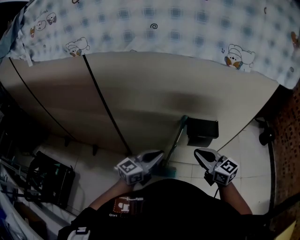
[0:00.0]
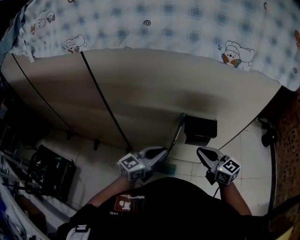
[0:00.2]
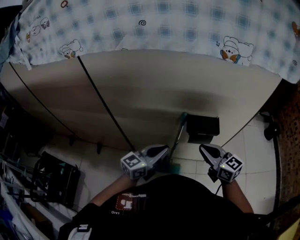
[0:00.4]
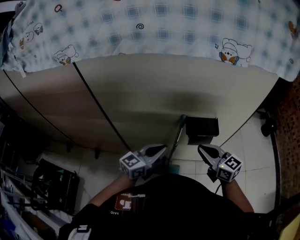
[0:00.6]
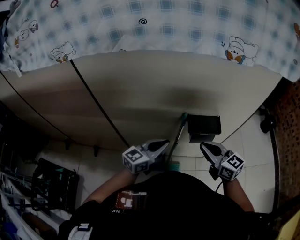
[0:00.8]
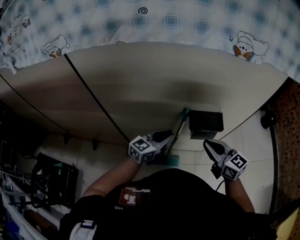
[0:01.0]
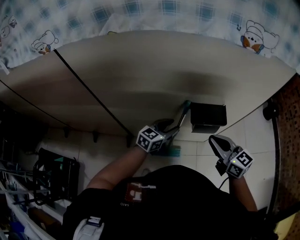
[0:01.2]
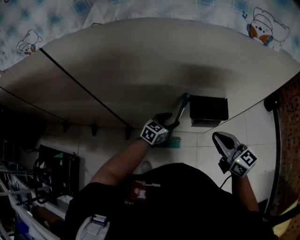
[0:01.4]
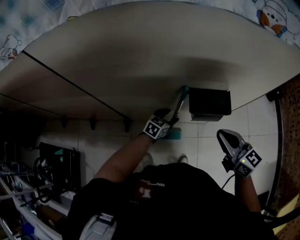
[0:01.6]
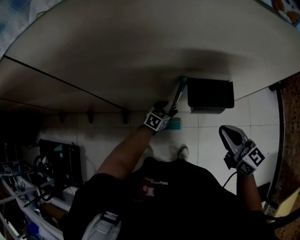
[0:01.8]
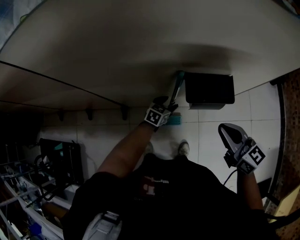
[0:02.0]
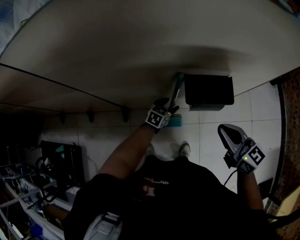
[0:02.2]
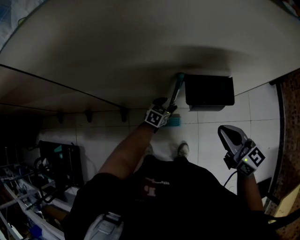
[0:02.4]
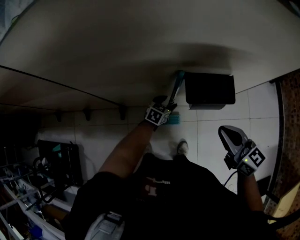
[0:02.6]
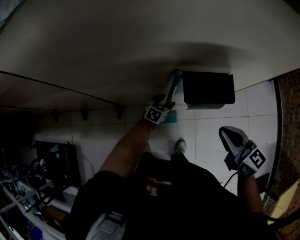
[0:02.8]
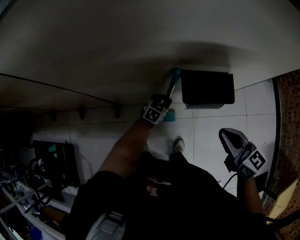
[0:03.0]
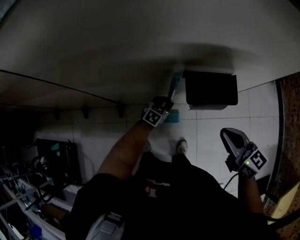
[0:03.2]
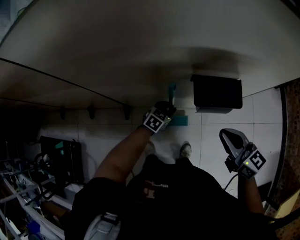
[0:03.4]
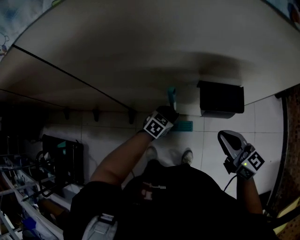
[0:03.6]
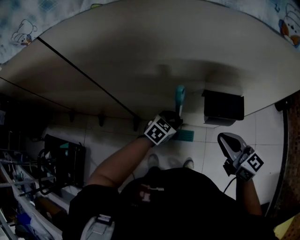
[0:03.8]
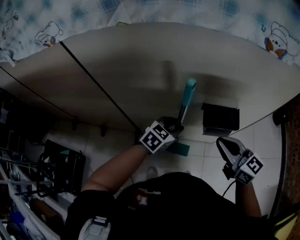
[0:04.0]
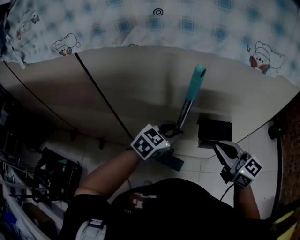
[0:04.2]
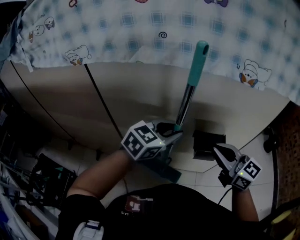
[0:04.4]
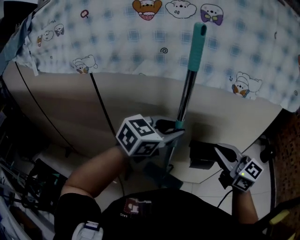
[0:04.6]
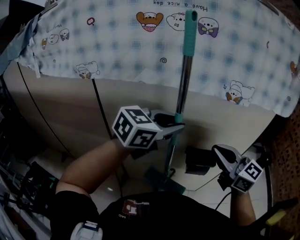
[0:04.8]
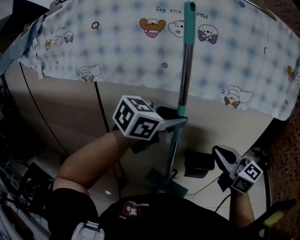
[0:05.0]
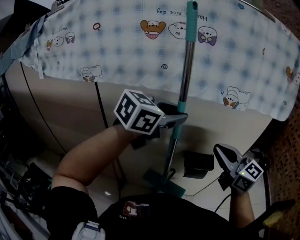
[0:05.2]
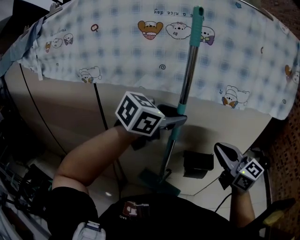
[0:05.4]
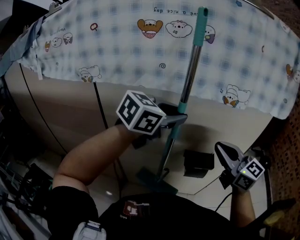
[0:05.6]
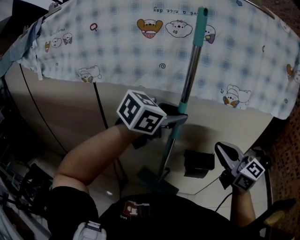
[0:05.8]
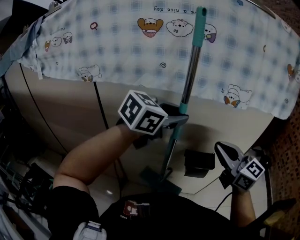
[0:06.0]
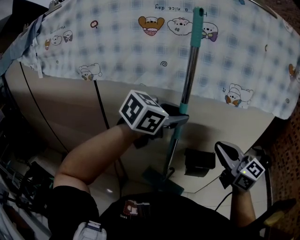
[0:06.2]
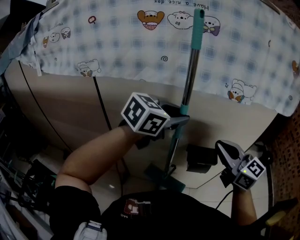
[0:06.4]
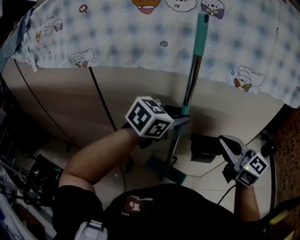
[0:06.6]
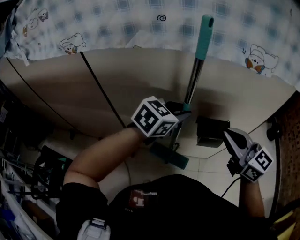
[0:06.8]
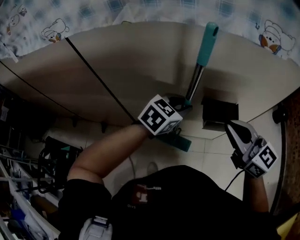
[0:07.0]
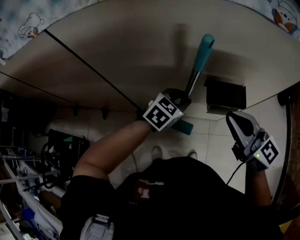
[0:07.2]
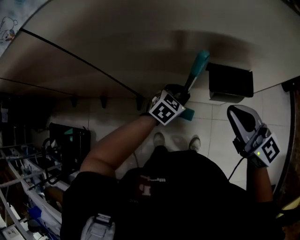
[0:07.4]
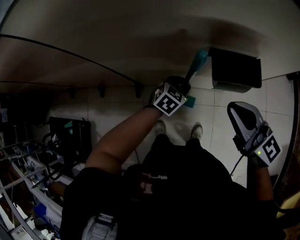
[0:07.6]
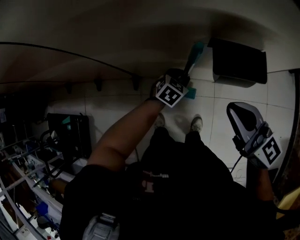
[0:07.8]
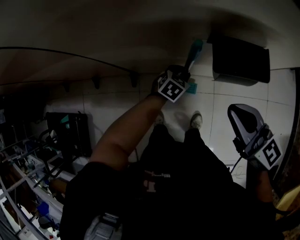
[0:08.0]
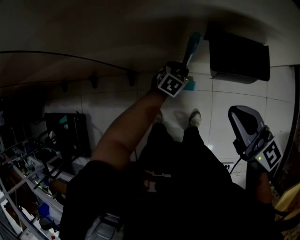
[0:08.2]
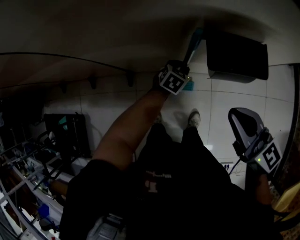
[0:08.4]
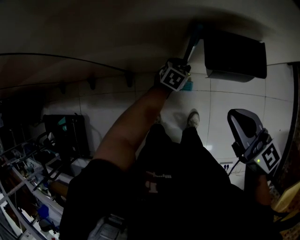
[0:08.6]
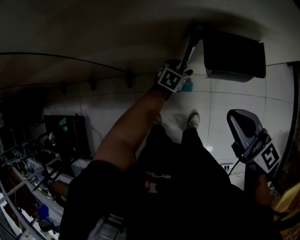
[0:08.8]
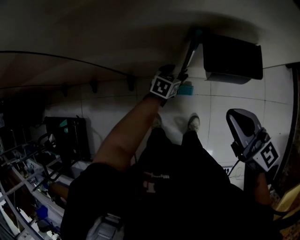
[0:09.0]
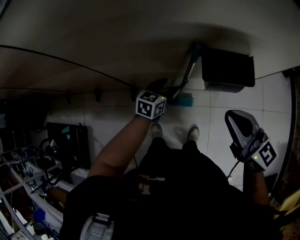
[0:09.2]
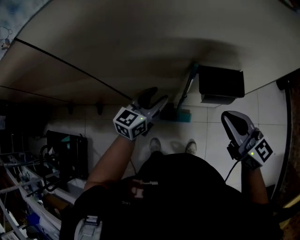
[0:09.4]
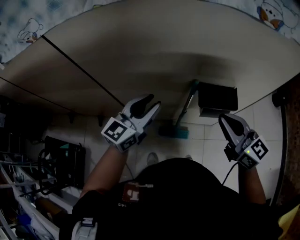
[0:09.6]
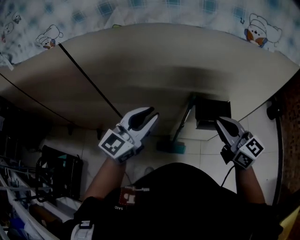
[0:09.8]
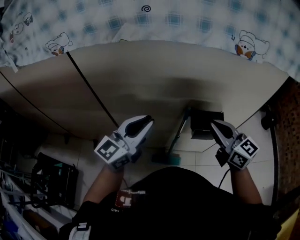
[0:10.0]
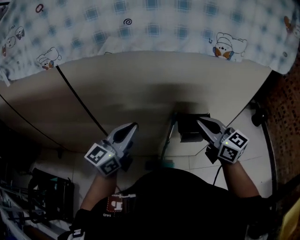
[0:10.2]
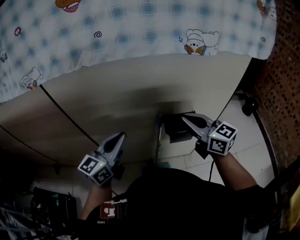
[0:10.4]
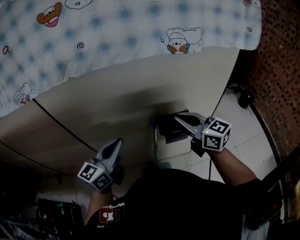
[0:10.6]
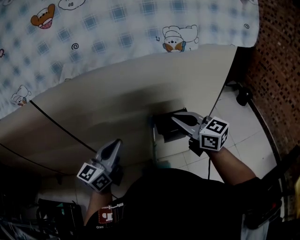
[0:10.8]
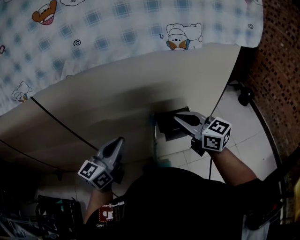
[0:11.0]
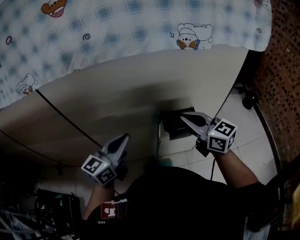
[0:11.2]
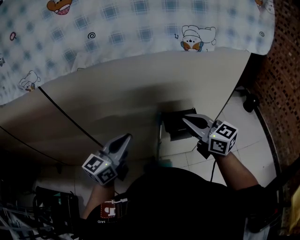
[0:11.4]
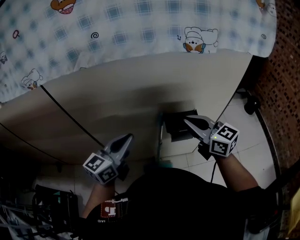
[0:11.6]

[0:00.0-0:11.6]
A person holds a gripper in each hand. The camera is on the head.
0:00.0 to 0:01.4: The left gripper travels downward and forward by approximately 25 cm, rotates some 30 degrees, and opens its fingers; the right gripper travels to the right by roughly 5 cm.
0:01.4 to 0:02.8: The right gripper is displaced downward by approximately 5 cm, while the left gripper travels downward by about 15 cm.
0:02.8 to 0:04.4: The left gripper heads upward, covering some 50 cm, turns by about 30 degrees, and closes its fingers, while the right gripper moves upward and to the left, some 20 cm, and swivels about 30 degrees.
0:04.4 to 0:05.8: The right gripper travels upward by approximately 10 cm, while the left gripper moves upward, about 15 cm.
0:05.8 to 0:07.2: The right gripper is displaced downward by some 15 cm, while the left gripper moves downward, roughly 35 cm, and swivels about 20 degrees.
0:07.2 to 0:08.8: The right gripper moves downward, approximately 15 cm. Meanwhile the left gripper travels downward by approximately 30 cm, and opens up.
0:08.8 to 0:10.2: The right gripper travels upward by about 20 cm; the left gripper shifts about 50 cm upward, tips its fingers upward by approximately 50 degrees, and closes up.
0:10.2 to 0:11.6: There are only small adjustments of the grippers.

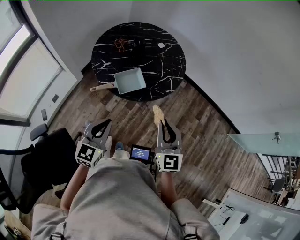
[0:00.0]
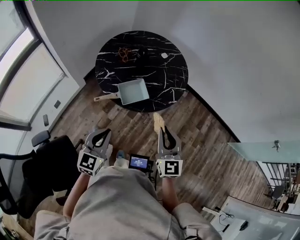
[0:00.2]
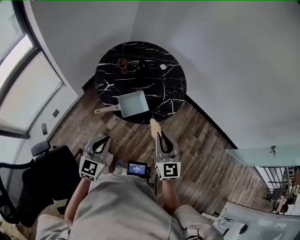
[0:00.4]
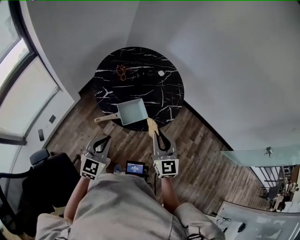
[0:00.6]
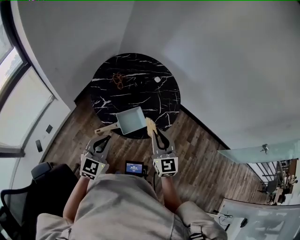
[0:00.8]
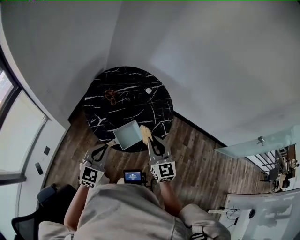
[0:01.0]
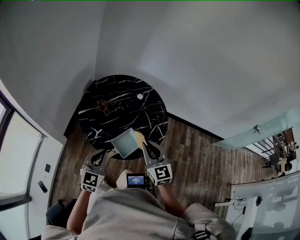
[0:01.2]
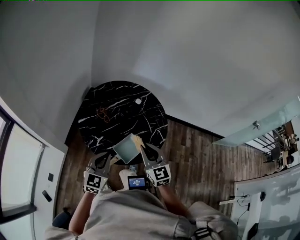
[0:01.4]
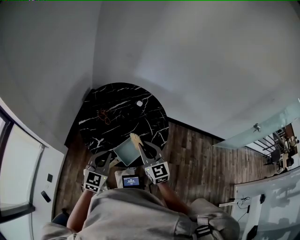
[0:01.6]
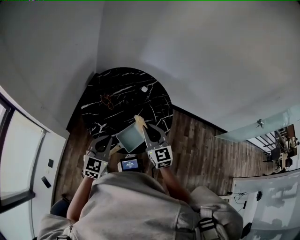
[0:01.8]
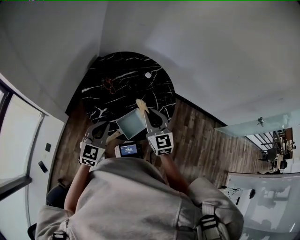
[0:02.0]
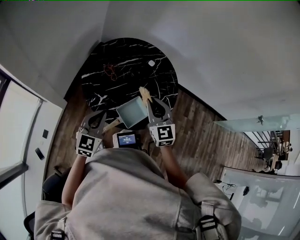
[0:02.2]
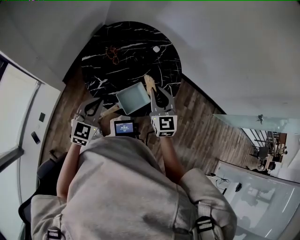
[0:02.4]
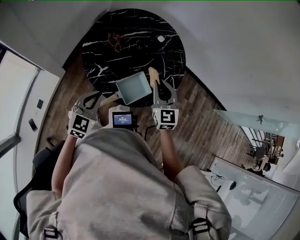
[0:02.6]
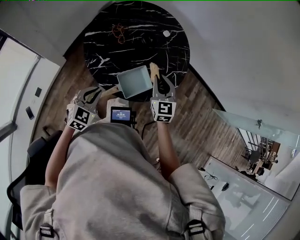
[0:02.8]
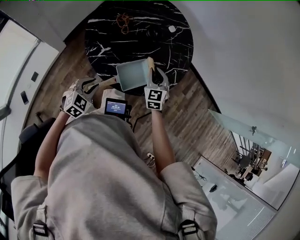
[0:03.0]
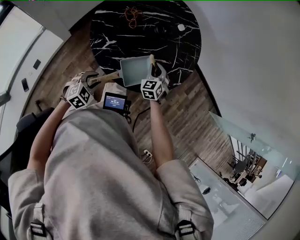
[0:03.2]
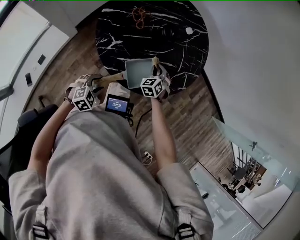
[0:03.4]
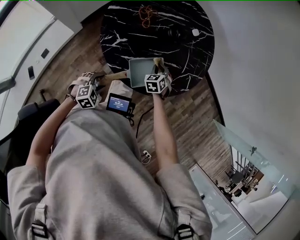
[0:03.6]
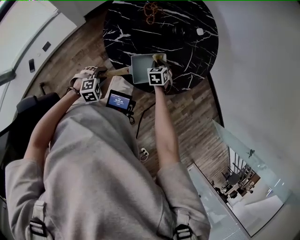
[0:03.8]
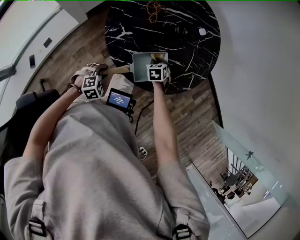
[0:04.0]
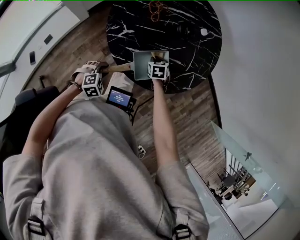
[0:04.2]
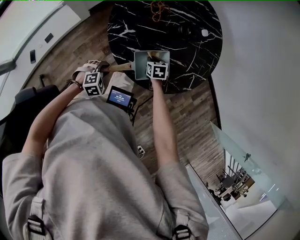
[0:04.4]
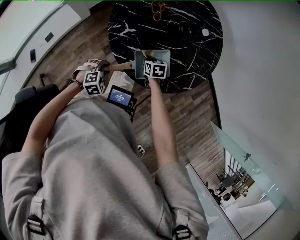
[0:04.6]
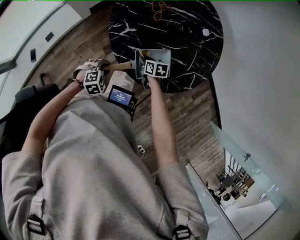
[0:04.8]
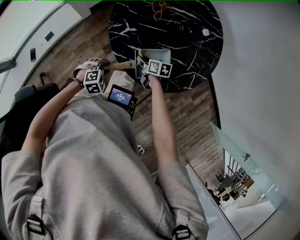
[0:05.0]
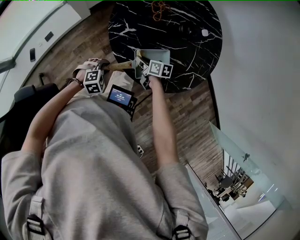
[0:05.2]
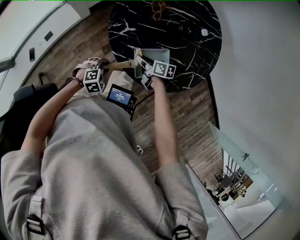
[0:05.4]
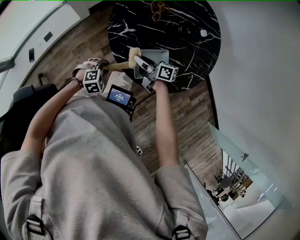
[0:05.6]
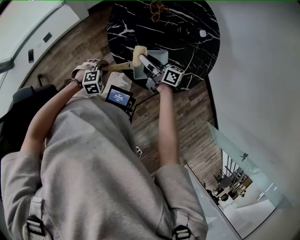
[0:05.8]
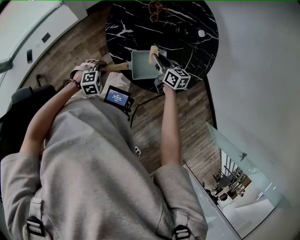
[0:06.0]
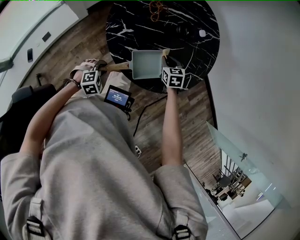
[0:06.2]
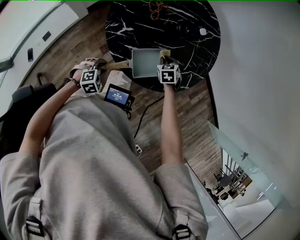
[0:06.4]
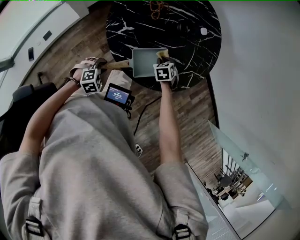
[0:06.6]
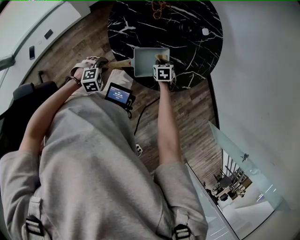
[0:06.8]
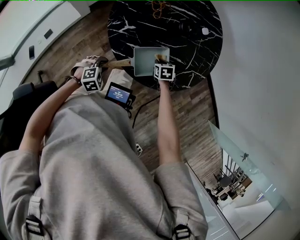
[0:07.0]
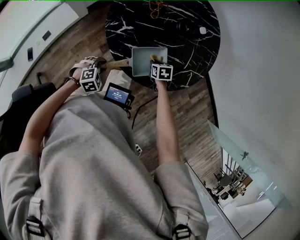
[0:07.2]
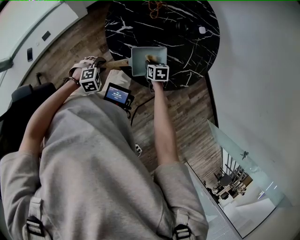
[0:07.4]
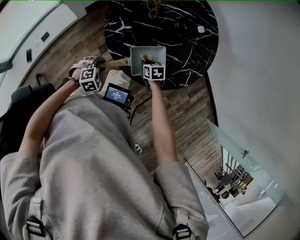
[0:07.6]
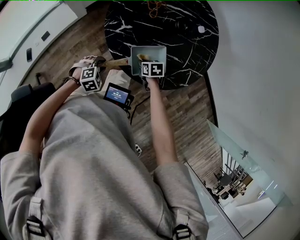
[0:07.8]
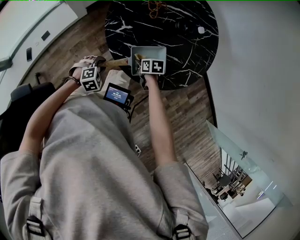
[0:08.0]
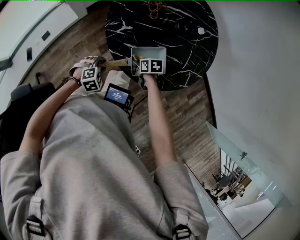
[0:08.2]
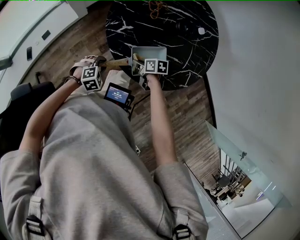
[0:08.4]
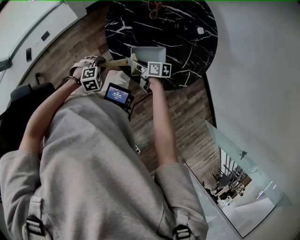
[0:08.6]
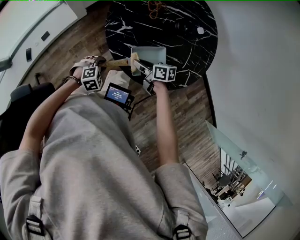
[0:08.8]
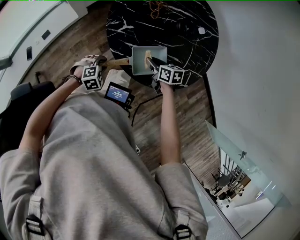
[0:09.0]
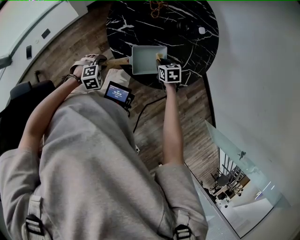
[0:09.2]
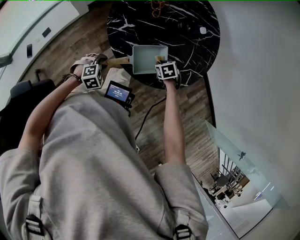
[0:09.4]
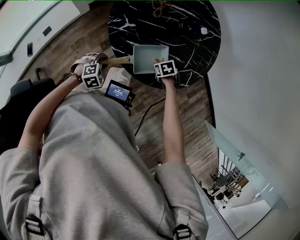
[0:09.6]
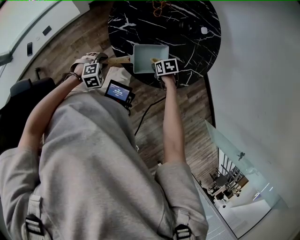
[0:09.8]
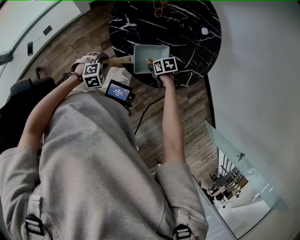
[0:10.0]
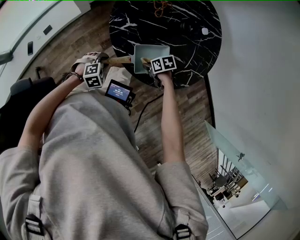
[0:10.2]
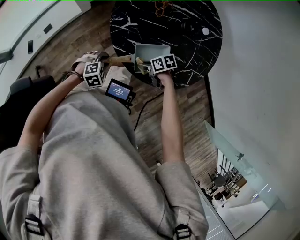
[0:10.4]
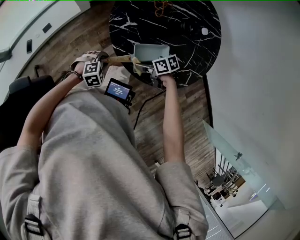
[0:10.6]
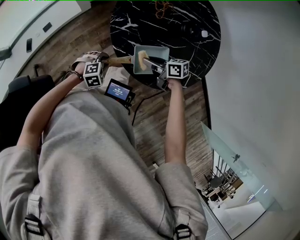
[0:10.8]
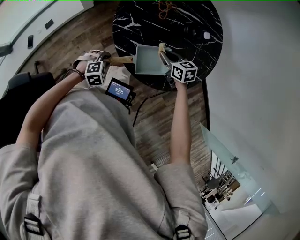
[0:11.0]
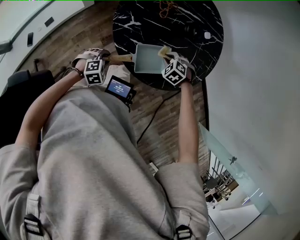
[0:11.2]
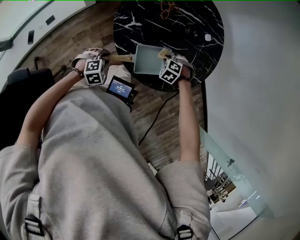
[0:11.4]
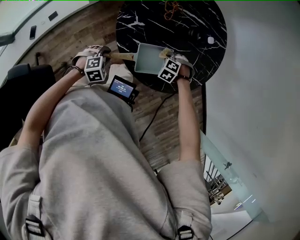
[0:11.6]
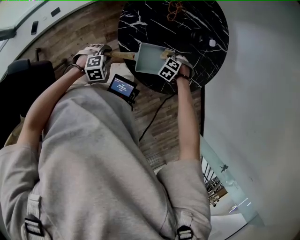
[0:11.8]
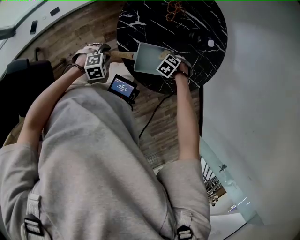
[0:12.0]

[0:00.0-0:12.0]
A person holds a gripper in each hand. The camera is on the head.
0:00.0 to 0:01.6: Both grippers move forward and to the left, roughly 30 cm. The left gripper rotates some 20 degrees.
0:01.6 to 0:03.0: The right gripper goes some 20 cm downward and forward, and turns by roughly 20 degrees. Meanwhile the left gripper moves downward, some 20 cm, turns by roughly 30 degrees, and opens its fingers.
0:03.0 to 0:04.4: The right gripper travels downward by roughly 20 cm, and angles its fingers downward, by approximately 40 degrees. Meanwhile the left gripper moves downward, about 10 cm, changes its angle by about 20 degrees, and opens, then closes again.
0:04.4 to 0:06.0: The right gripper heads upward, covering approximately 10 cm, and tips its fingers upward by approximately 30 degrees.
0:06.0 to 0:07.6: The right gripper goes about 10 cm downward, and tips its fingers downward by about 30 degrees.
0:07.6 to 0:09.0: The right gripper moves upward, approximately 10 cm, and changes its angle by approximately 20 degrees.
0:09.0 to 0:10.4: The right gripper moves some 10 cm, and changes its angle by approximately 30 degrees.
0:10.4 to 0:12.0: The right gripper travels upward and back again, some 10 cm each way, and changes its angle by approximately 80 degrees.
